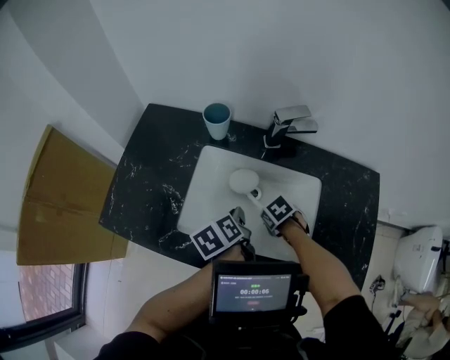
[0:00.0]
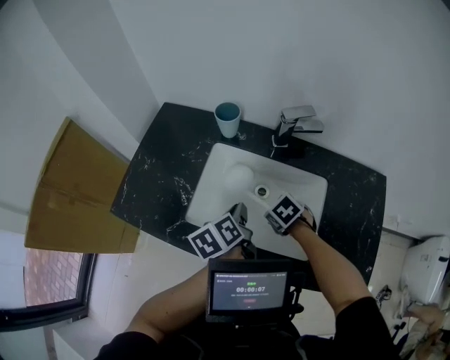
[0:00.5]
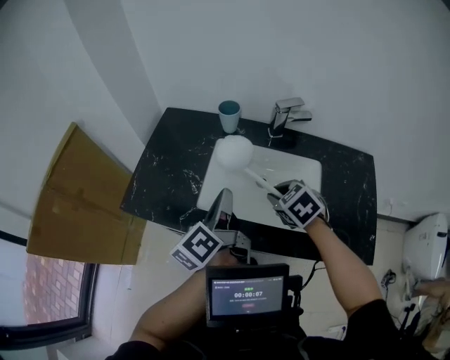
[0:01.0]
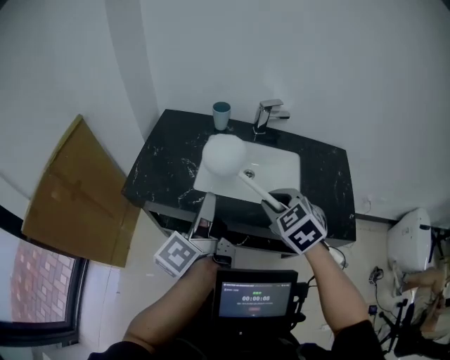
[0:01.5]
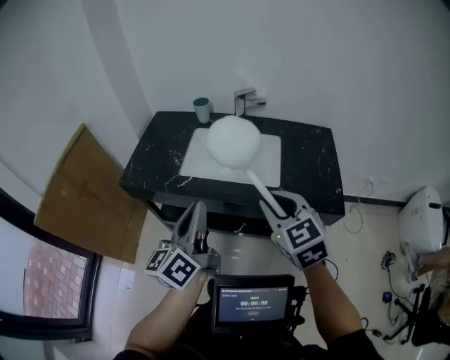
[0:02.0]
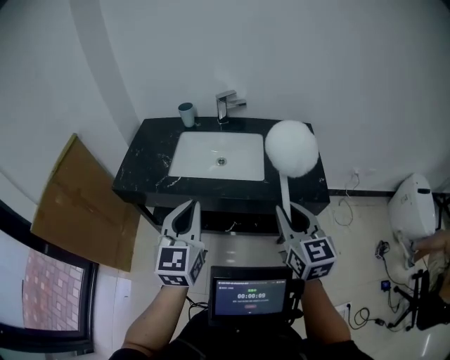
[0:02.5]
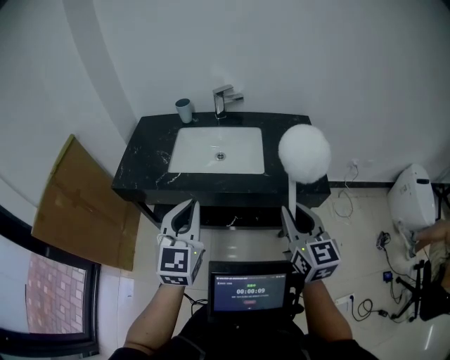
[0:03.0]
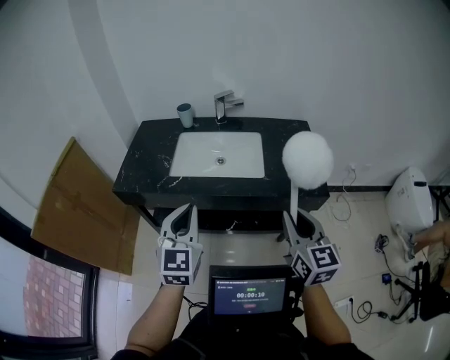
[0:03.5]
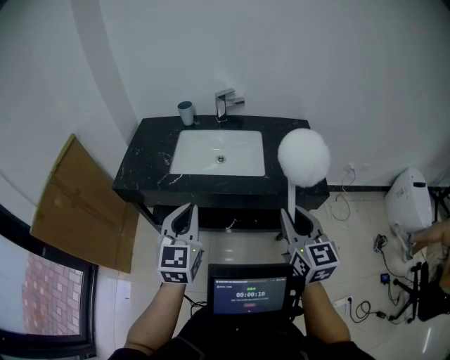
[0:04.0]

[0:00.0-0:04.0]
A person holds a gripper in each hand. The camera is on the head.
0:00.0 to 0:02.0: The left gripper changes place by about 50 cm, and tips its fingers upward by some 50 degrees; the right gripper moves approximately 50 cm, and tilts its fingers some 60 degrees upward.
0:02.0 to 0:04.0: The left gripper shifts by roughly 5 cm, and twists some 50 degrees clockwise, seen from behind. The right gripper heads backward and to the right, covering some 15 cm, and rotates roughly 30 degrees.

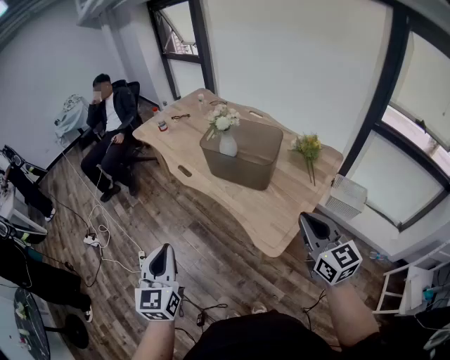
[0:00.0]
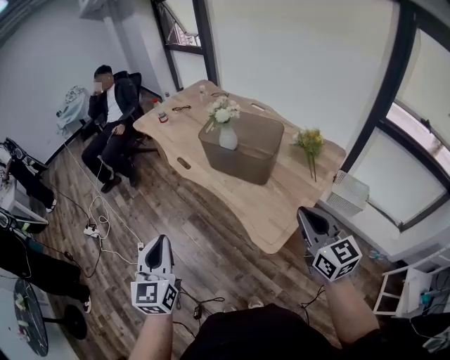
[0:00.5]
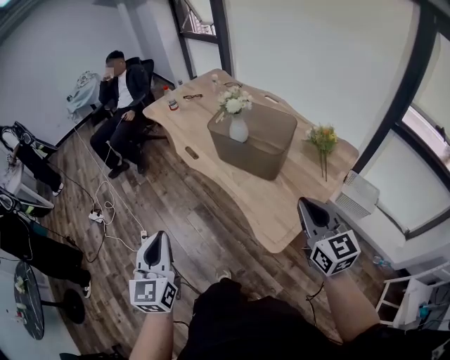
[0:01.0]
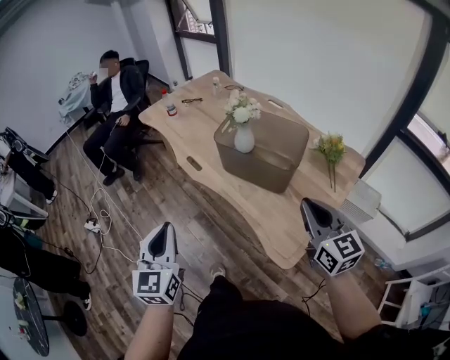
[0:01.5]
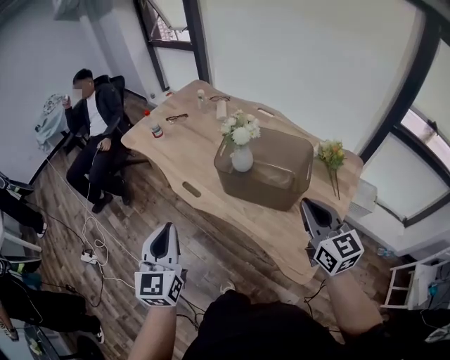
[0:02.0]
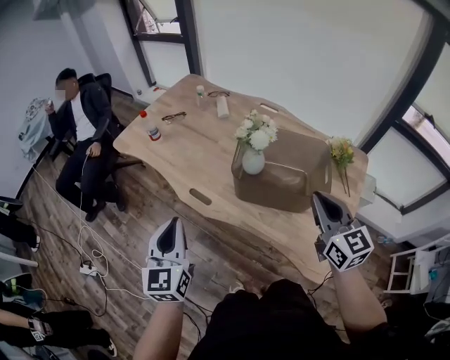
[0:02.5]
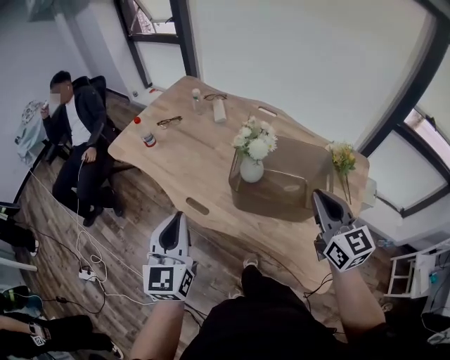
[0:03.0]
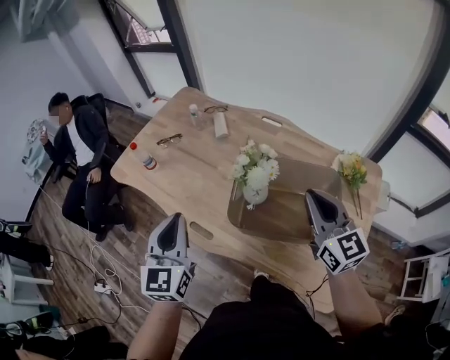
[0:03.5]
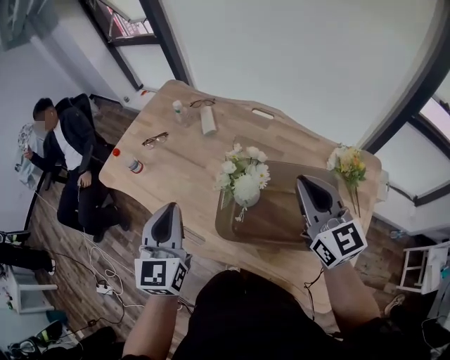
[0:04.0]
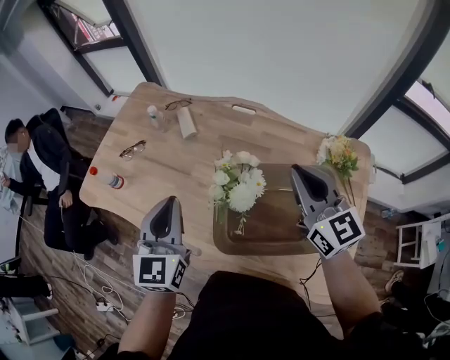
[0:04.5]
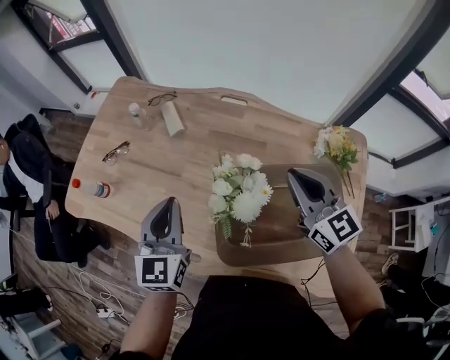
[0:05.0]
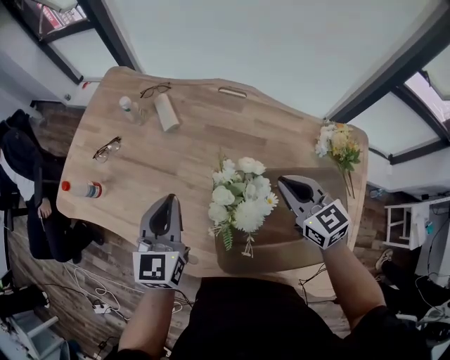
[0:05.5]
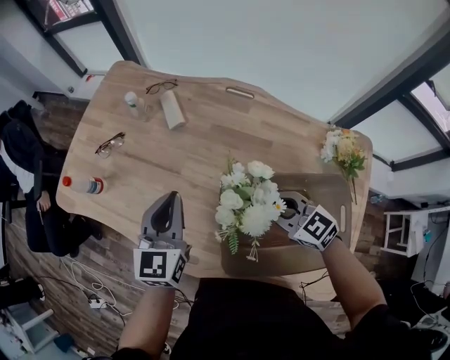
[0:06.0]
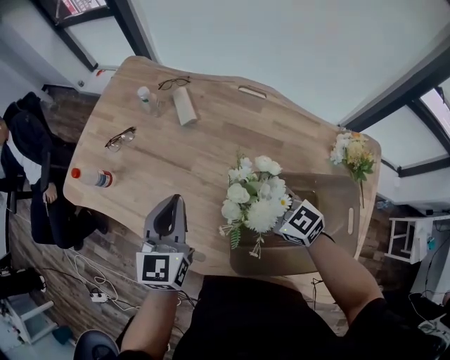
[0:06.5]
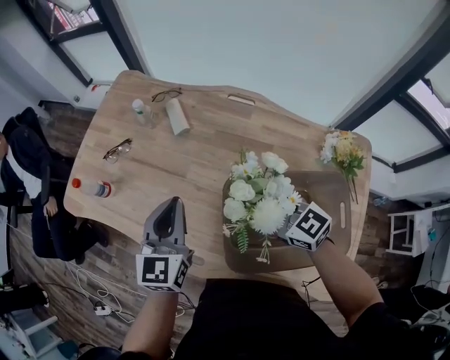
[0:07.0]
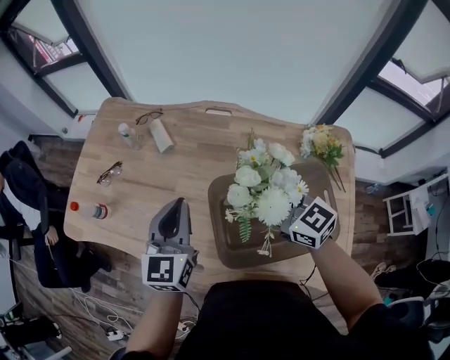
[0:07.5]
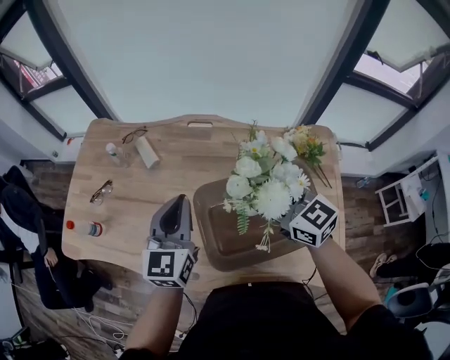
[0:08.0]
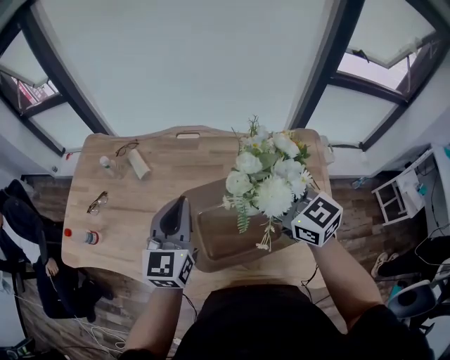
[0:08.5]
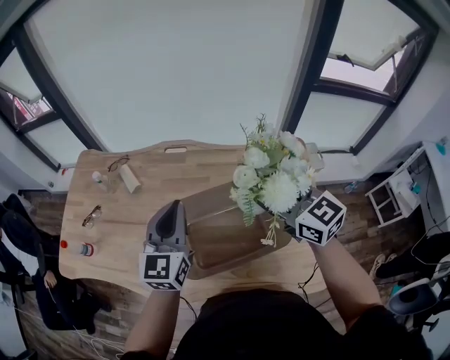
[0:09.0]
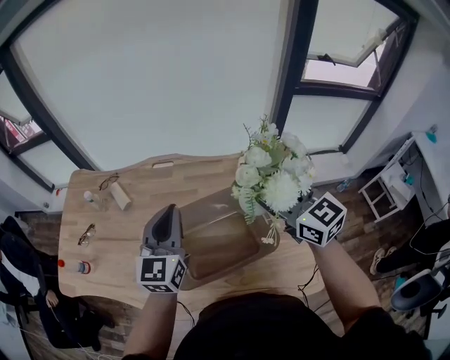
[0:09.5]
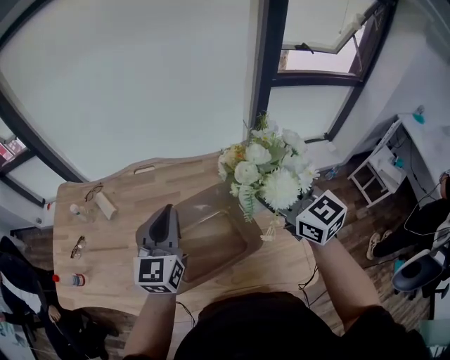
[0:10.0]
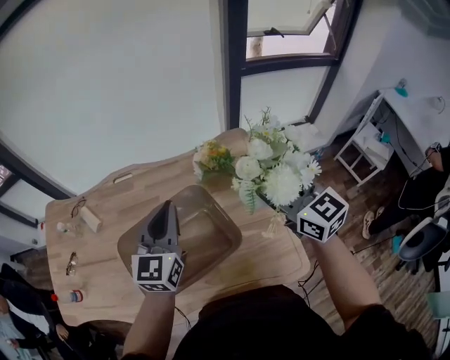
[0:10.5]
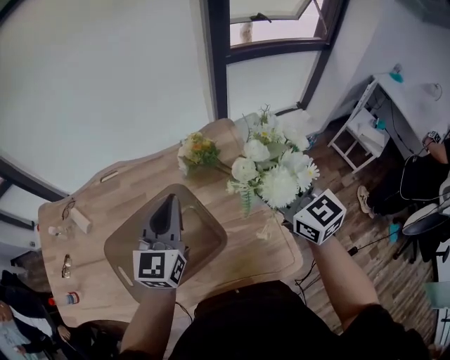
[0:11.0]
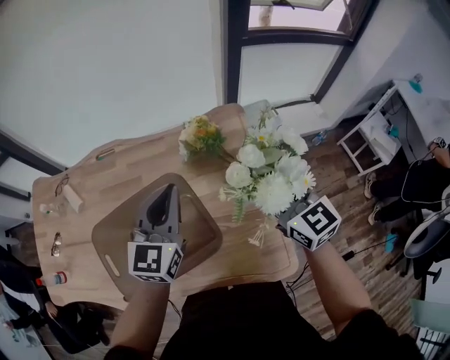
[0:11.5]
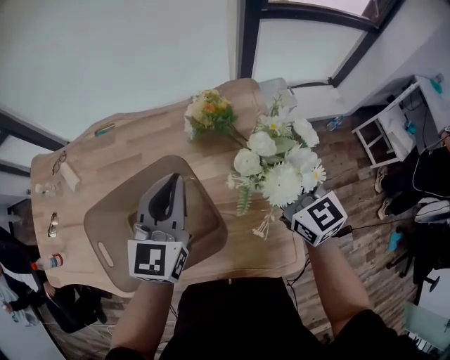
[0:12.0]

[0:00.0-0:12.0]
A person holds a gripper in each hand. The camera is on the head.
0:00.0 to 0:02.0: The grippers both shift forward by some 25 cm.
0:02.0 to 0:04.0: The grippers both shift forward by about 30 cm.
0:04.0 to 0:06.0: The left gripper moves forward and downward, some 20 cm; the right gripper travels downward by roughly 20 cm, and changes its angle by roughly 40 degrees.
0:06.0 to 0:08.0: The left gripper moves to the right and upward, some 10 cm, while the right gripper travels upward by some 15 cm, turns by approximately 30 degrees, and opens.
0:08.0 to 0:10.0: Both grippers move to the right, some 20 cm. The right gripper turns by about 20 degrees.
0:10.0 to 0:12.0: The left gripper is displaced to the right and downward by about 20 cm. The right gripper moves downward and to the right, approximately 20 cm.

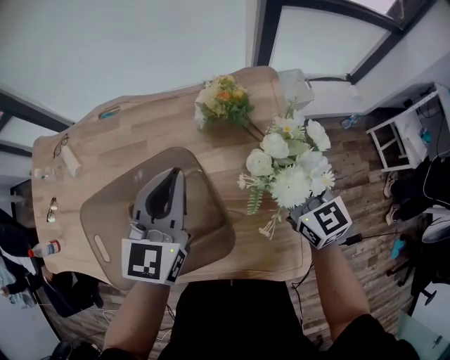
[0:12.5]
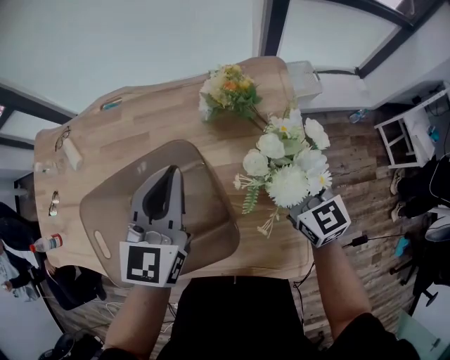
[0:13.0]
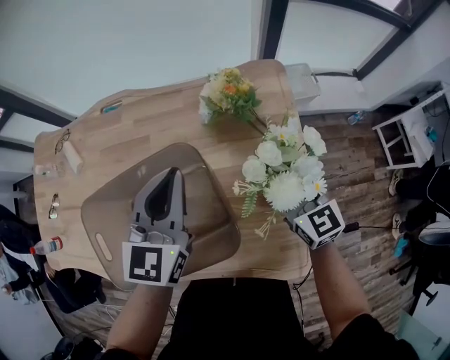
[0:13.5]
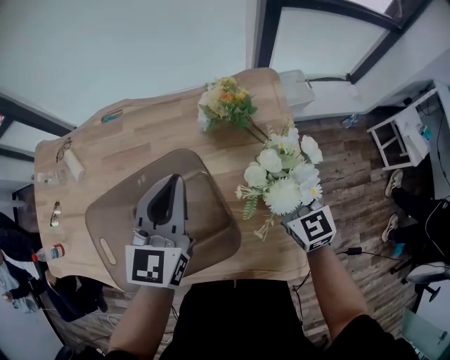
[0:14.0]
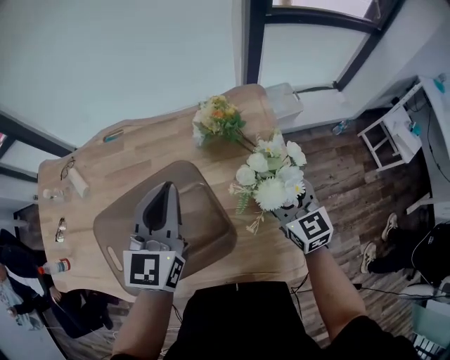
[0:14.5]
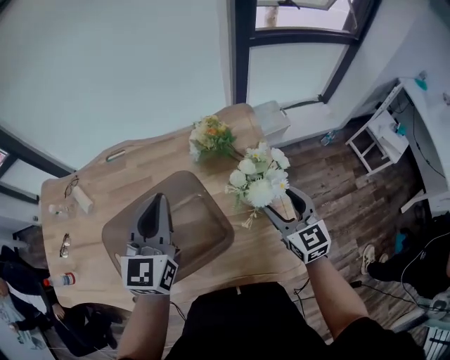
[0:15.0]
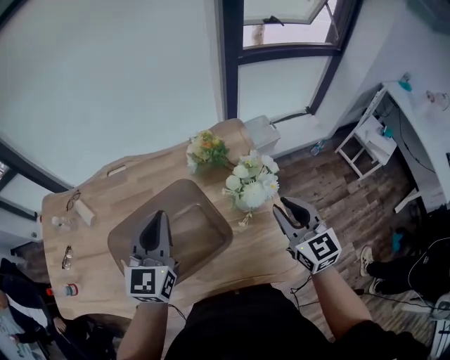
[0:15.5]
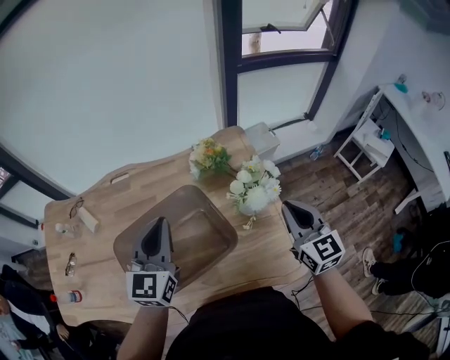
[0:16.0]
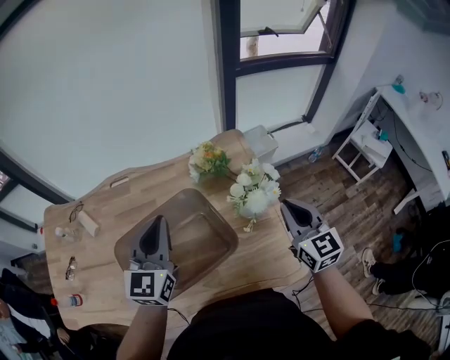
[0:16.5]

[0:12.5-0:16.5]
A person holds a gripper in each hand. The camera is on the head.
0:12.5 to 0:14.5: The grippers stay close to where they were, moving slightly.
0:14.5 to 0:16.5: The left gripper is displaced upward and to the left by about 5 cm. Meanwhile the right gripper travels upward and backward by approximately 15 cm, and closes its fingers.

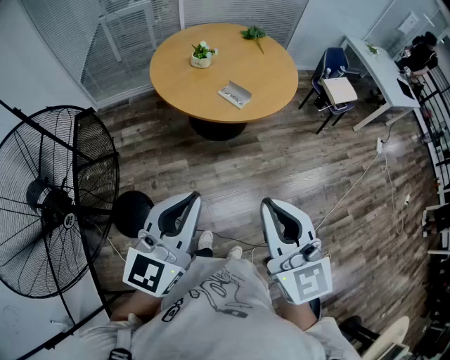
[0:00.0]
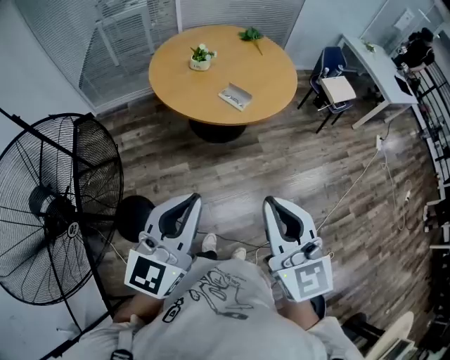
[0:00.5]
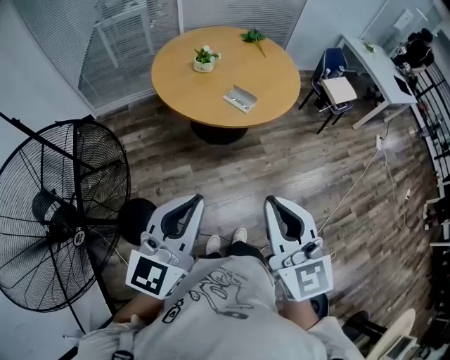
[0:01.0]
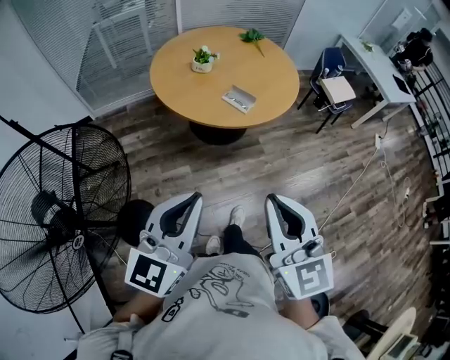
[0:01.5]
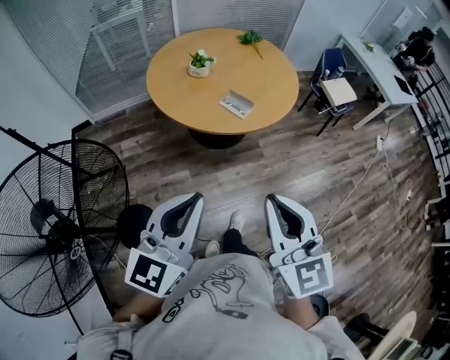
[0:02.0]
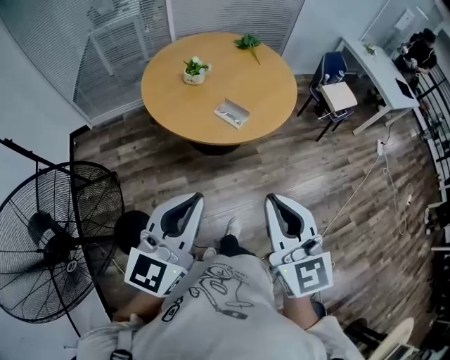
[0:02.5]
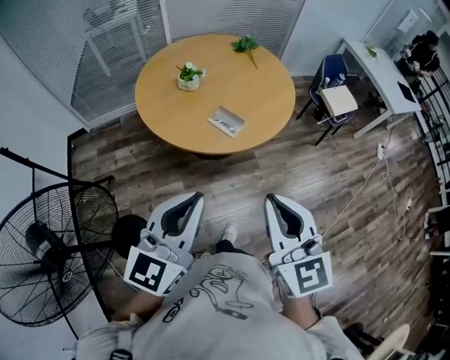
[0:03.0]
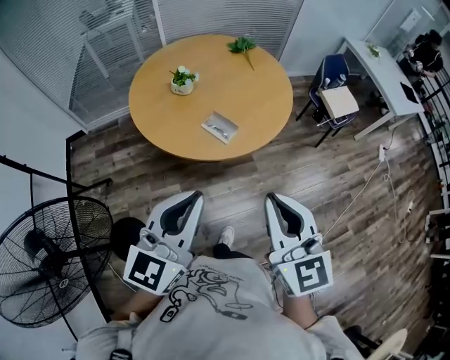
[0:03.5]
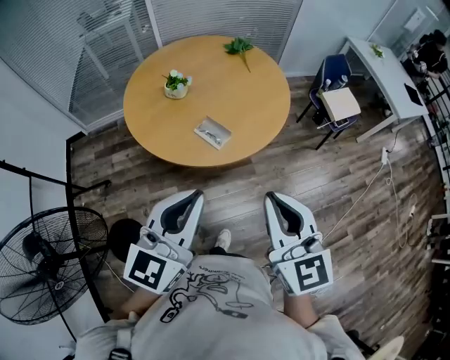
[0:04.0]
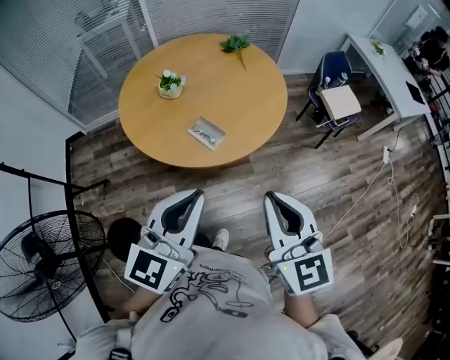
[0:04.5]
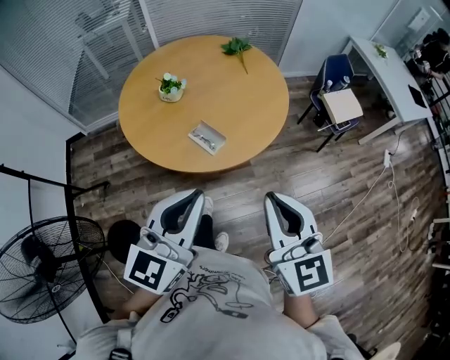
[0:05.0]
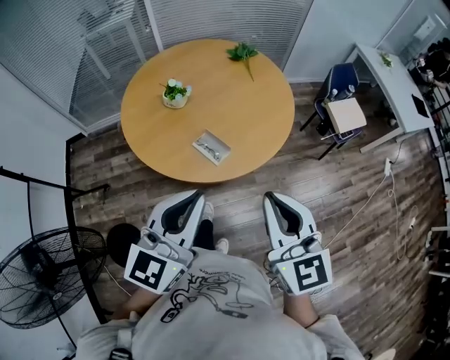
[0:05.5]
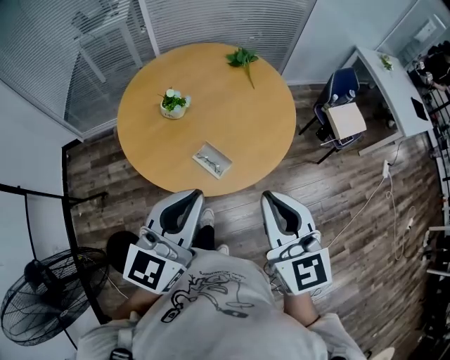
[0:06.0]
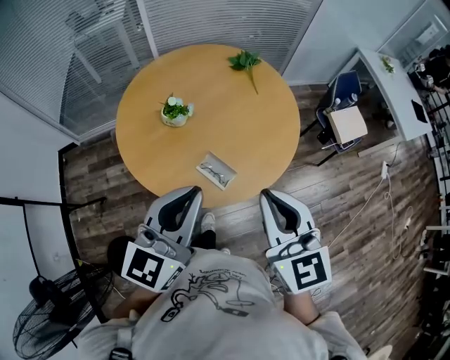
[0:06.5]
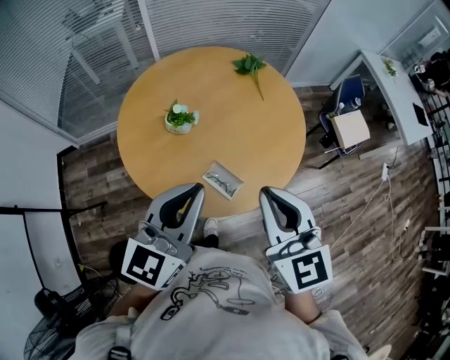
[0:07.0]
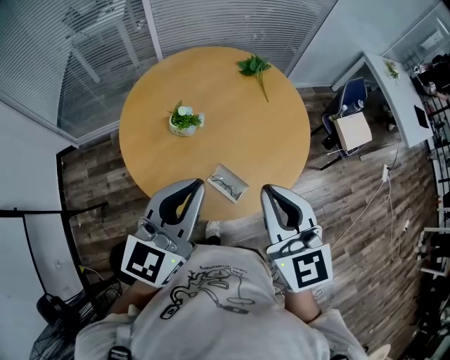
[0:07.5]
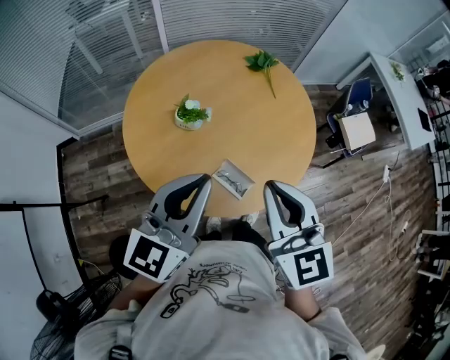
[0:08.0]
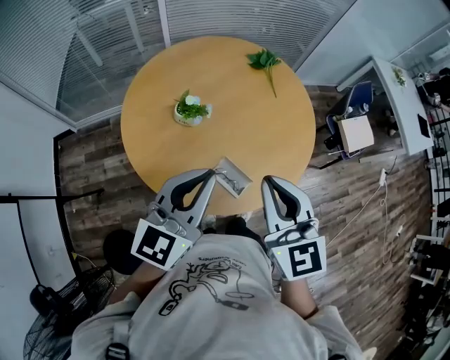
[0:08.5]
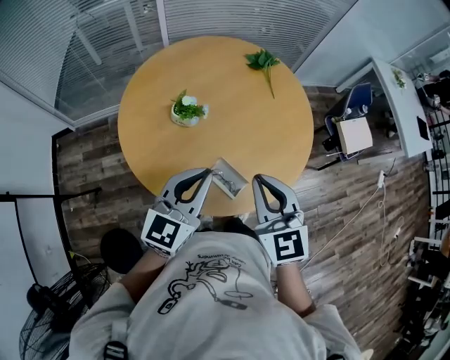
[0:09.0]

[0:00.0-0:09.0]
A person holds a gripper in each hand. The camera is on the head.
0:00.0 to 0:02.0: Both grippers travel together forward, about 5 cm.
0:02.0 to 0:04.5: Both grippers travel together forward and to the right, approximately 30 cm.
0:04.5 to 0:07.0: Both grippers travel together forward and to the left, some 30 cm.
0:07.0 to 0:09.0: Both grippers travel together downward and forward, roughly 10 cm.
